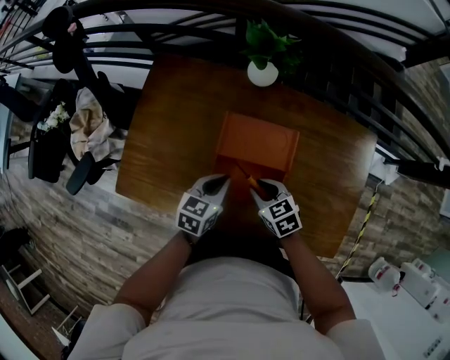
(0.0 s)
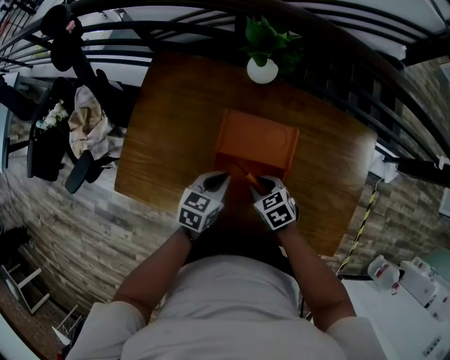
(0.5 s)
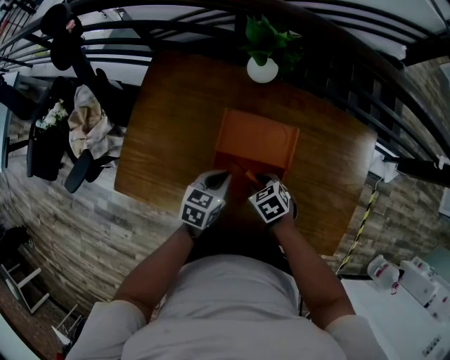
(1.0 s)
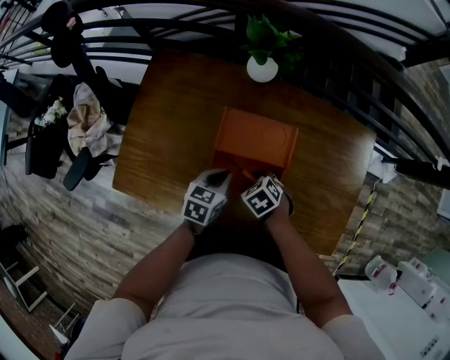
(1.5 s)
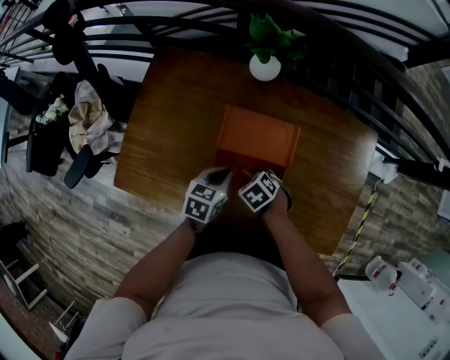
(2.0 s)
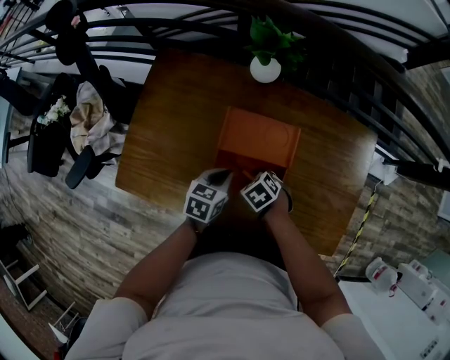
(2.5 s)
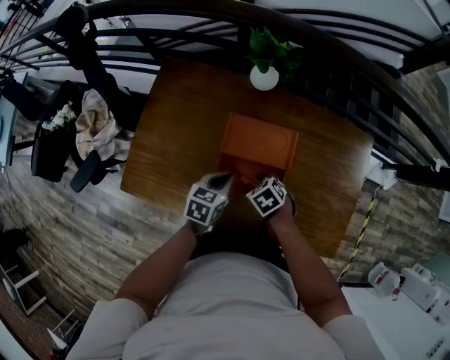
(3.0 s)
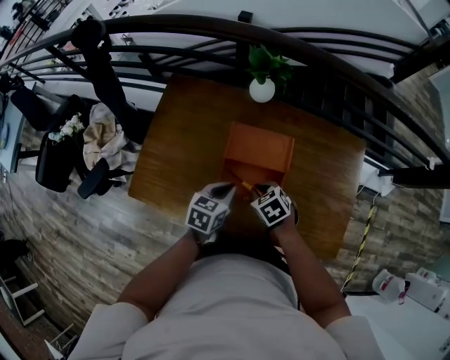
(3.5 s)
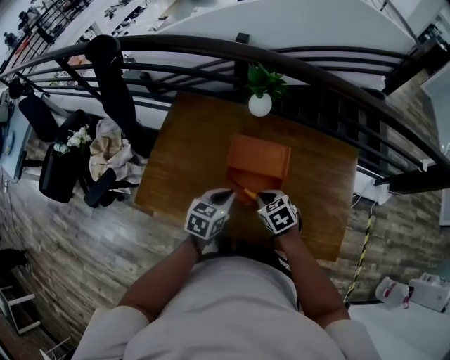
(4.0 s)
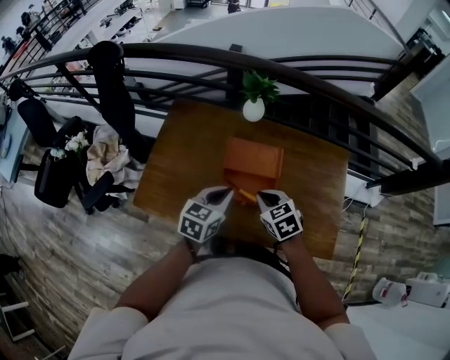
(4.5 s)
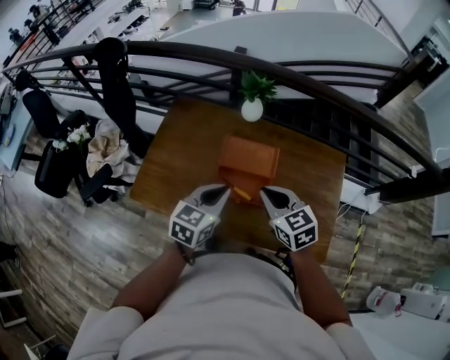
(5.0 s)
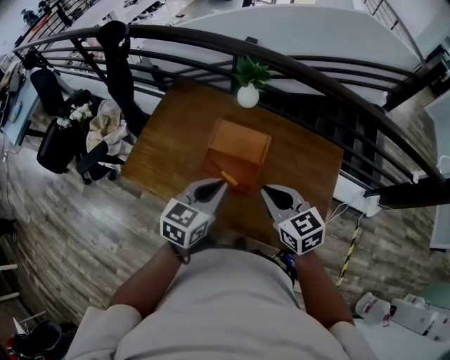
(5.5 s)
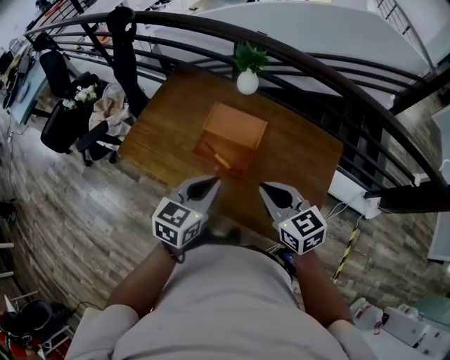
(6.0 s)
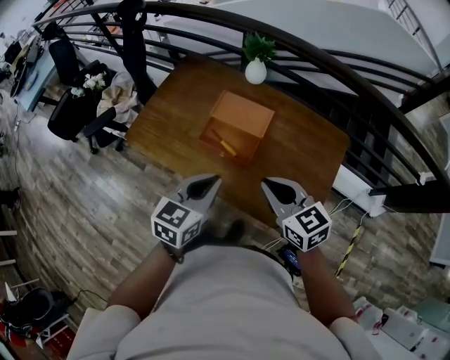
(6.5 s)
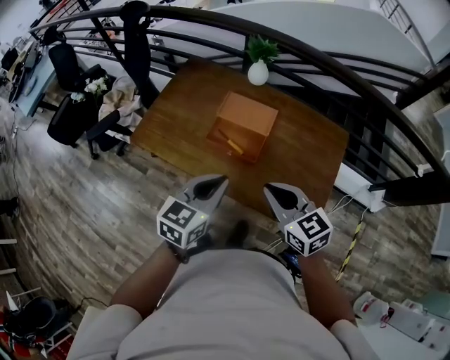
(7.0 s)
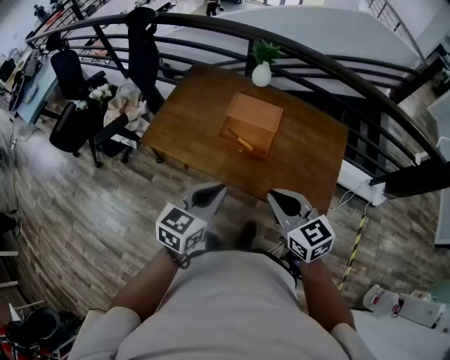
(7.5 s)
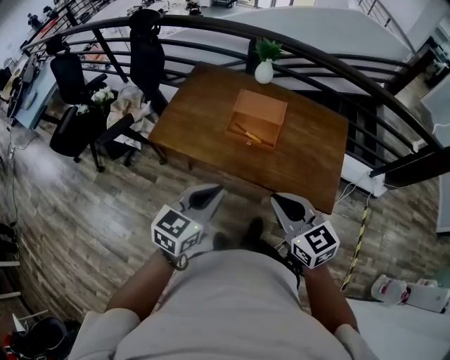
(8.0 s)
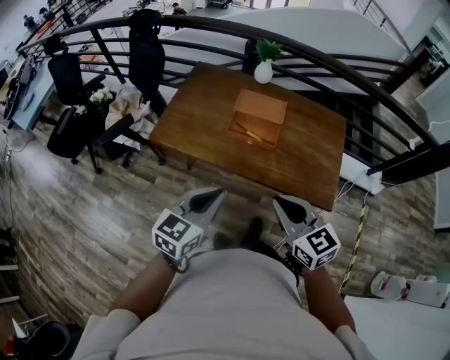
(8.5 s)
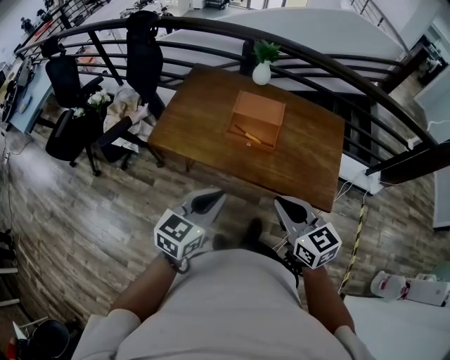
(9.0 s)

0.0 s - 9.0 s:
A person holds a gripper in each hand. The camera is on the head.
0.0 s - 2.0 s: The right gripper heads downward, covering approximately 10 cm, and changes its angle by about 30 degrees.
2.0 s - 4.5 s: The grippers both shift upward by approximately 20 cm. The right gripper changes its angle by roughly 30 degrees, and closes its fingers.
4.5 s - 7.0 s: The right gripper shifts some 25 cm backward, upward and to the right, and changes its angle by roughly 30 degrees. The left gripper heads backward and upward, covering roughly 20 cm.
7.0 s - 9.0 s: Both grippers travel together backward and to the left, approximately 20 cm.

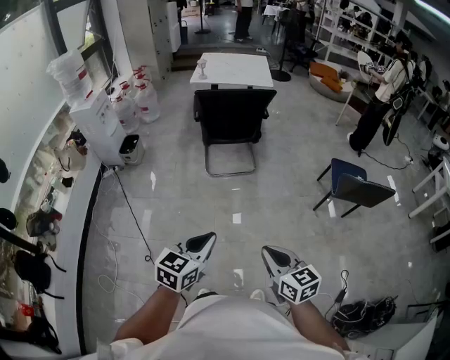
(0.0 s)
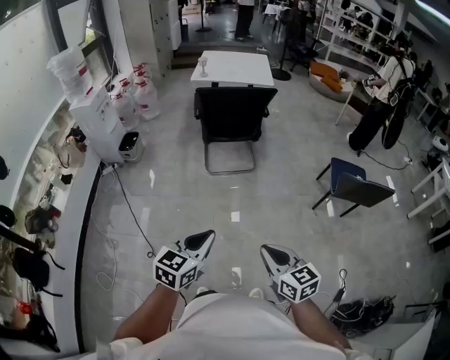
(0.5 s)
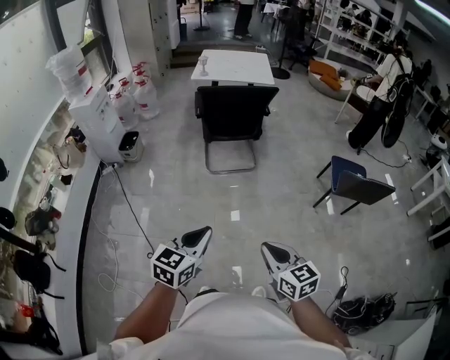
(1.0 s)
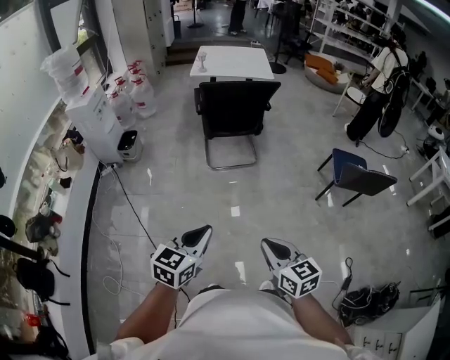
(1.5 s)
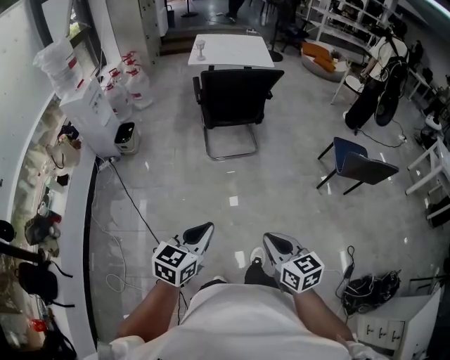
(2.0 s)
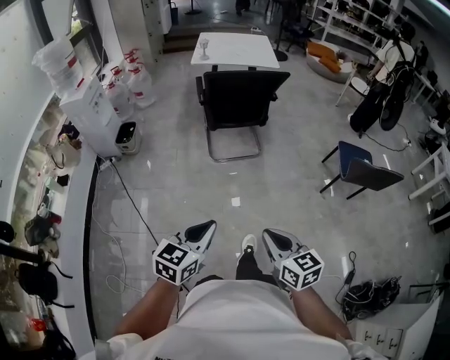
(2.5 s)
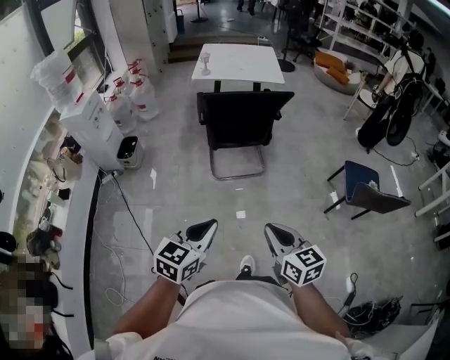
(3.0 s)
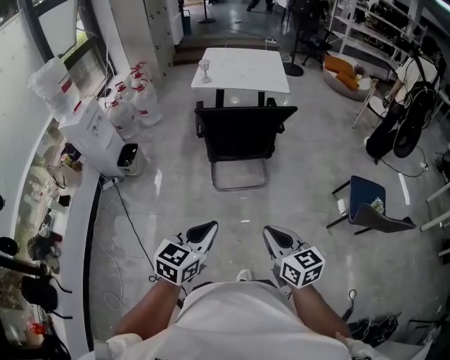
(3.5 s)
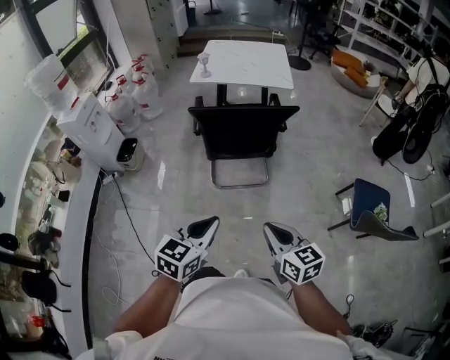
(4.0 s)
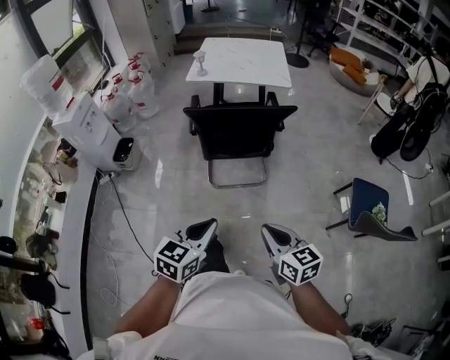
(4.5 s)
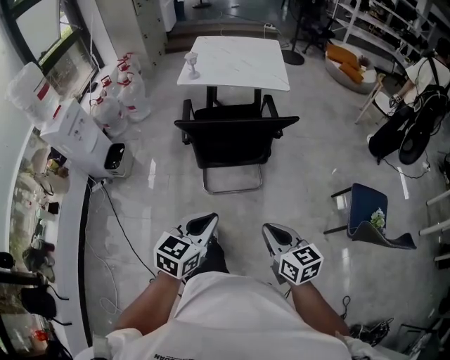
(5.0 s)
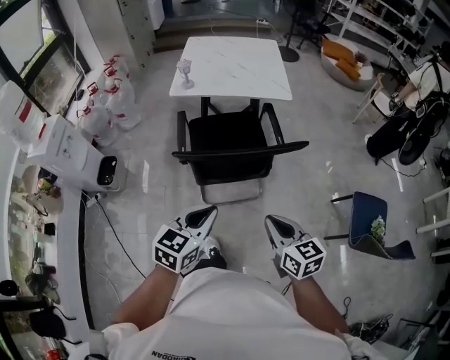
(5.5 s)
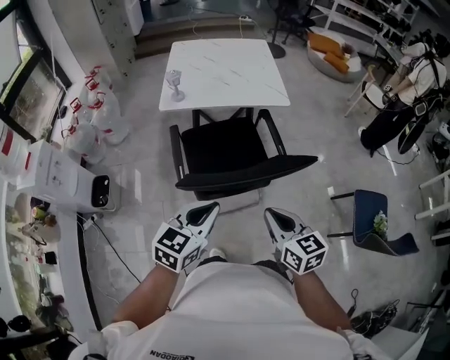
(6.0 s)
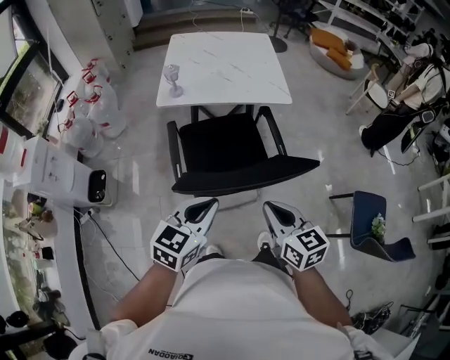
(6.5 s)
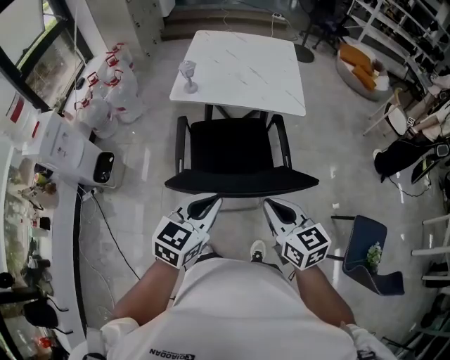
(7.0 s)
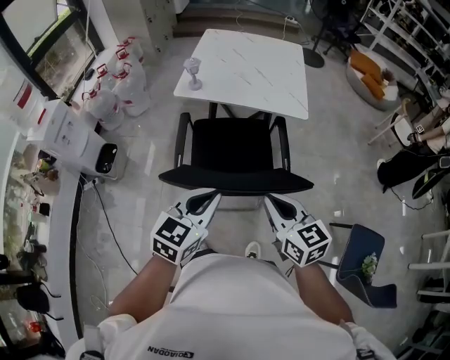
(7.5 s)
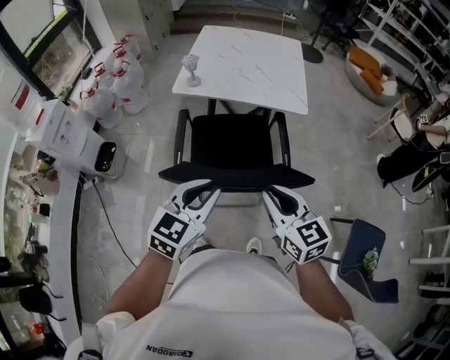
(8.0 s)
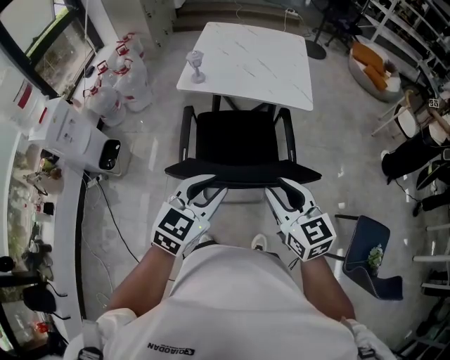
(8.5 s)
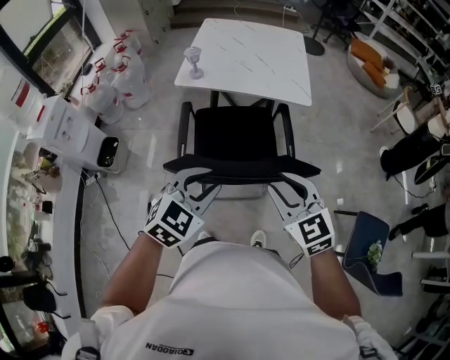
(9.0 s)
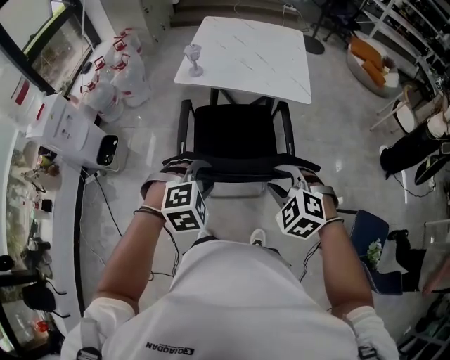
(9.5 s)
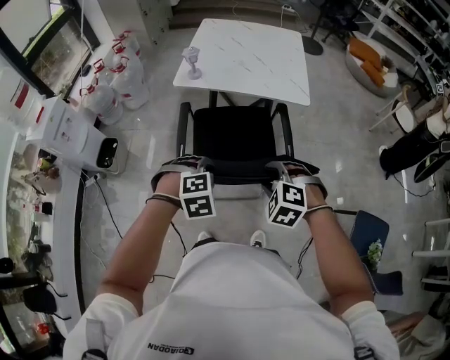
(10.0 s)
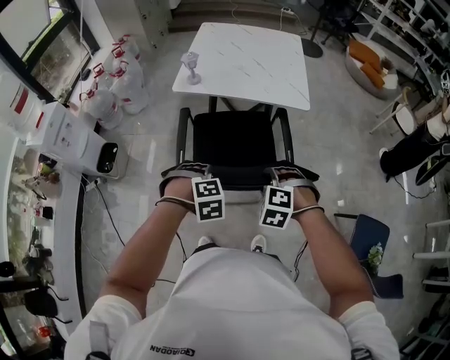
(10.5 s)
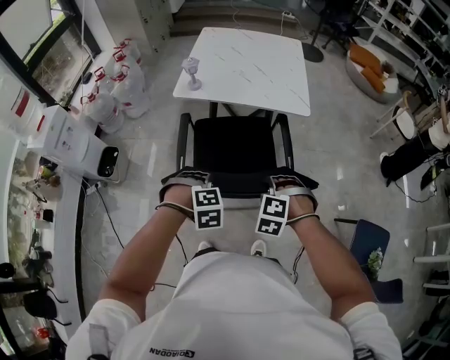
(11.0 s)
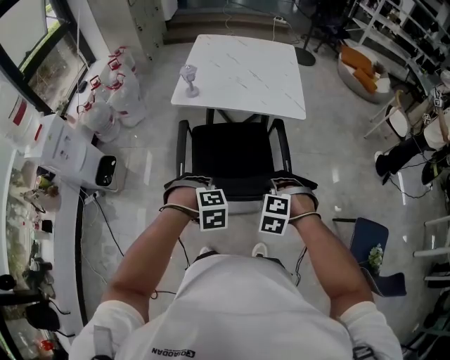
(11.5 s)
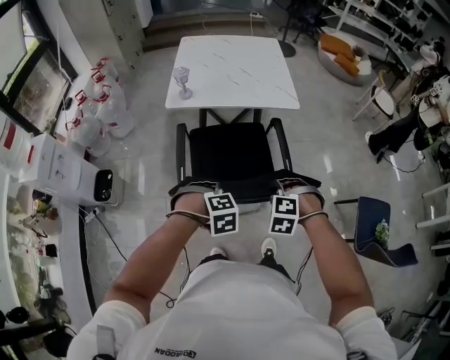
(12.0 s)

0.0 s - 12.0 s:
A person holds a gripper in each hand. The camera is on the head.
0.0 s - 2.0 s: The two grippers go about 10 cm to the left.
2.0 s - 4.0 s: Both grippers travel together forward, roughly 35 cm.
4.0 s - 6.0 s: Both grippers move forward, about 35 cm.
6.0 s - 8.0 s: The left gripper goes roughly 10 cm to the right and forward. The right gripper moves forward and to the right, about 10 cm.
8.0 s - 10.0 s: Both grippers travel together downward, approximately 10 cm. The right gripper points its fingers some 40 degrees further downward, and opens up. The left gripper tips its fingers downward by about 50 degrees, and opens its fingers.
10.0 s - 12.0 s: The right gripper ends up roughly 5 cm from where it was, and closes up; the left gripper moves roughly 5 cm, and closes up.

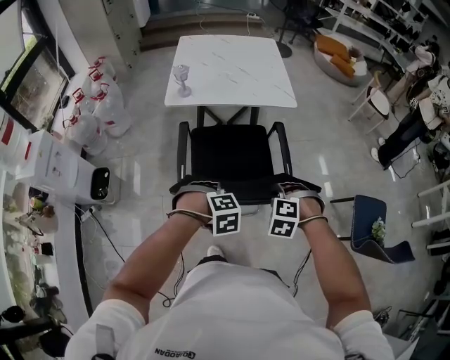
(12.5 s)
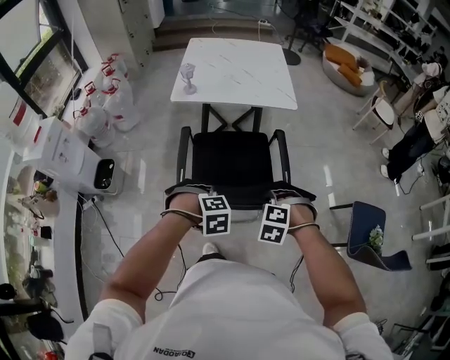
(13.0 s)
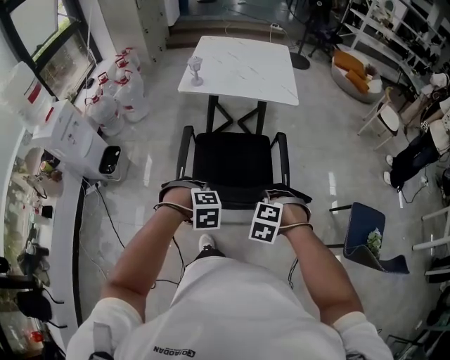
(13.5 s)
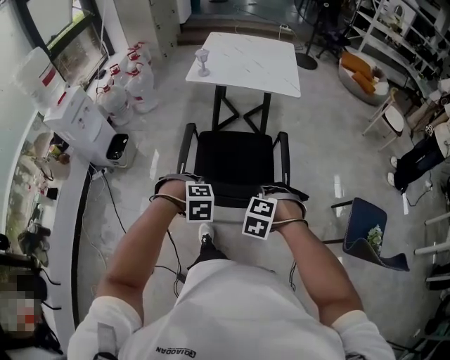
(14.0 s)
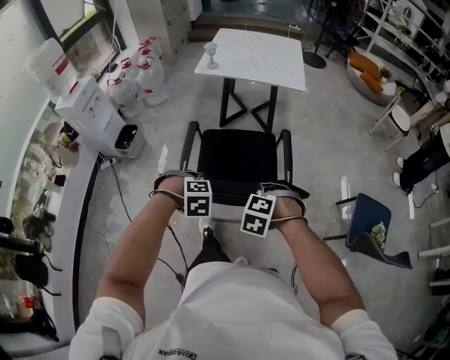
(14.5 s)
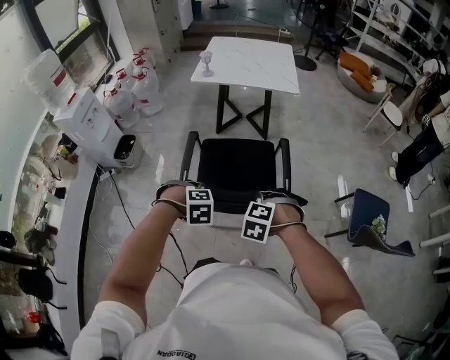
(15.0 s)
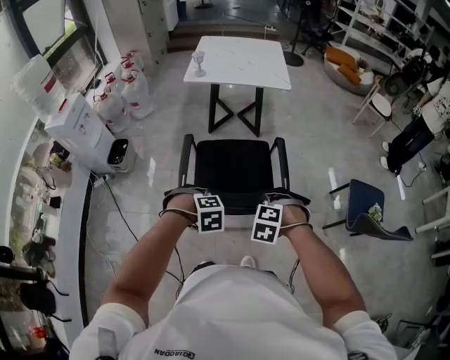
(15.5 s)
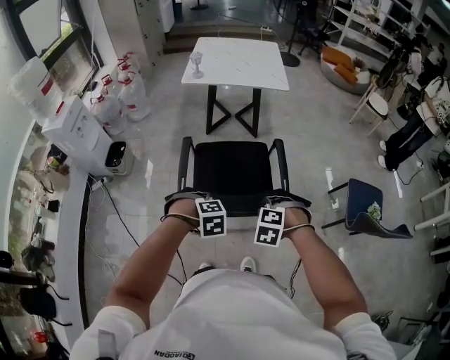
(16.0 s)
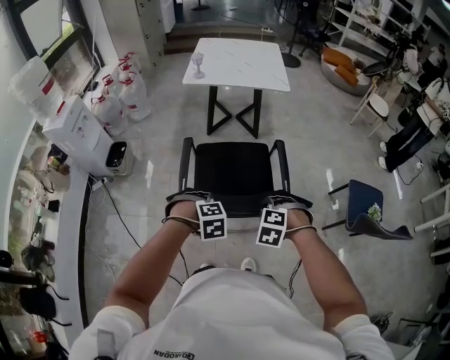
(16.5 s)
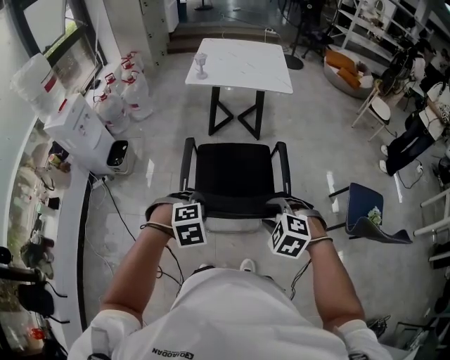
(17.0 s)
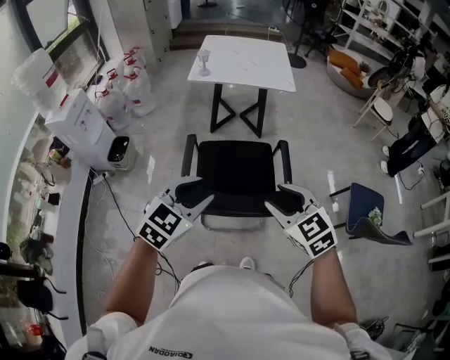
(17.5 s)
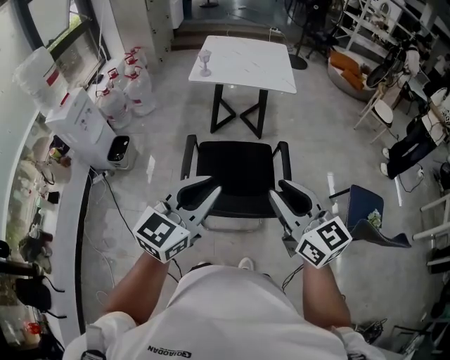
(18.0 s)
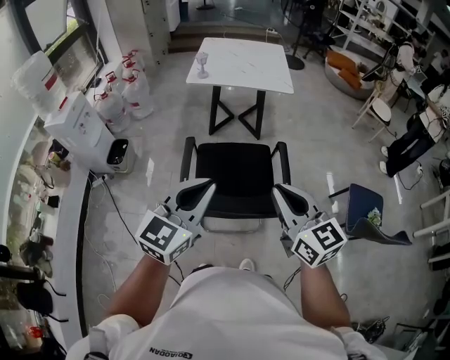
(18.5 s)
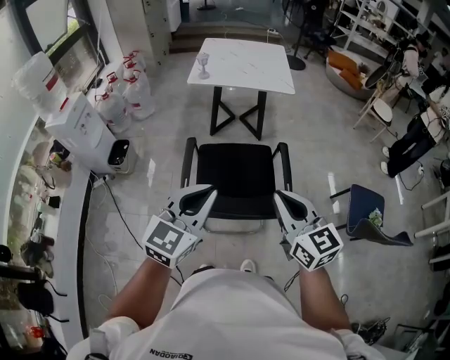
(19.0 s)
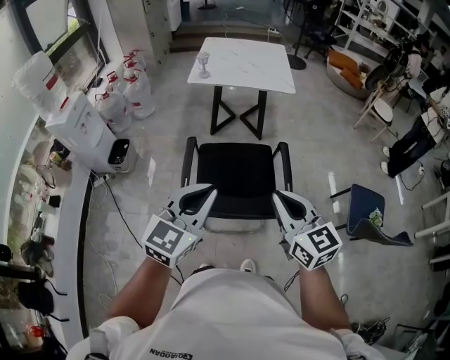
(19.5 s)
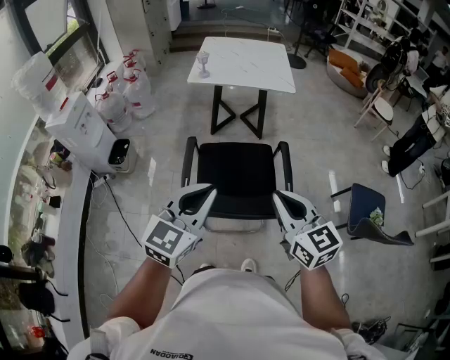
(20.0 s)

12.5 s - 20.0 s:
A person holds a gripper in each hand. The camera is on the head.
12.5 s - 14.5 s: The left gripper changes place by some 25 cm; the right gripper shifts by some 25 cm.
14.5 s - 16.5 s: The right gripper moves some 5 cm. The left gripper ends up roughly 5 cm from where it was.
16.5 s - 18.0 s: Both grippers travel together upward, about 25 cm. The left gripper tilts its fingers roughly 70 degrees upward; the right gripper points its fingers approximately 70 degrees further upward.
18.0 s - 20.0 s: The right gripper closes up.
